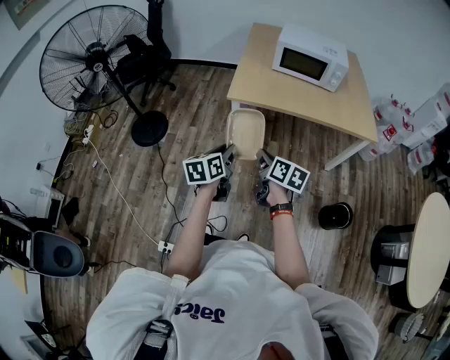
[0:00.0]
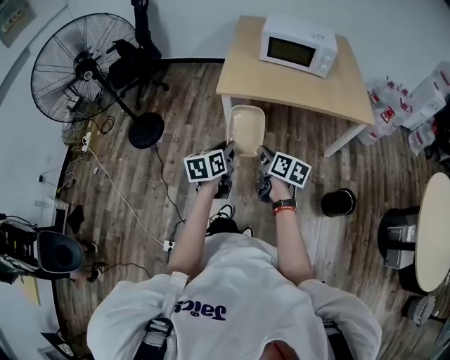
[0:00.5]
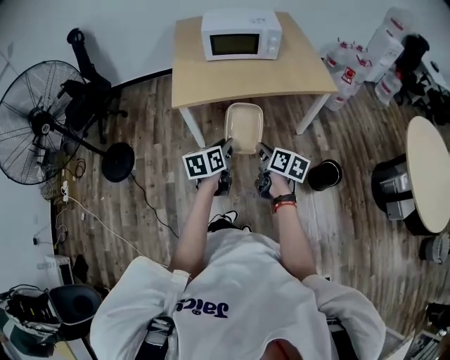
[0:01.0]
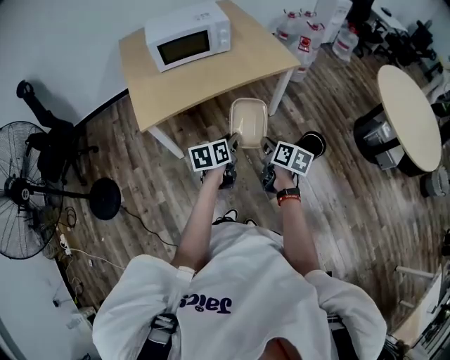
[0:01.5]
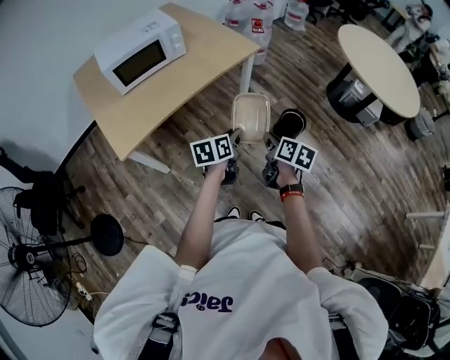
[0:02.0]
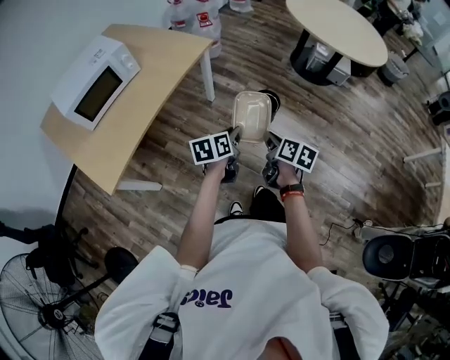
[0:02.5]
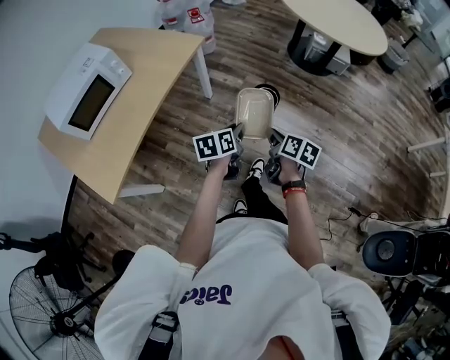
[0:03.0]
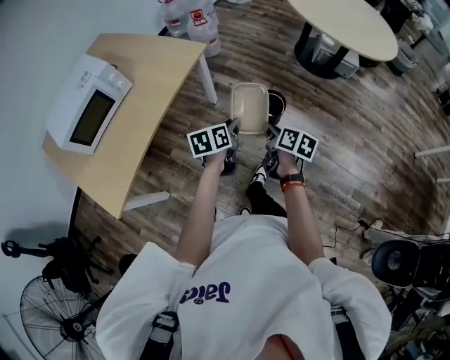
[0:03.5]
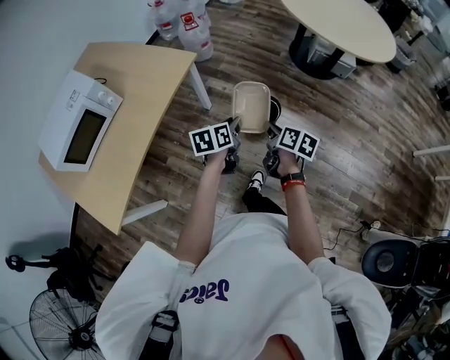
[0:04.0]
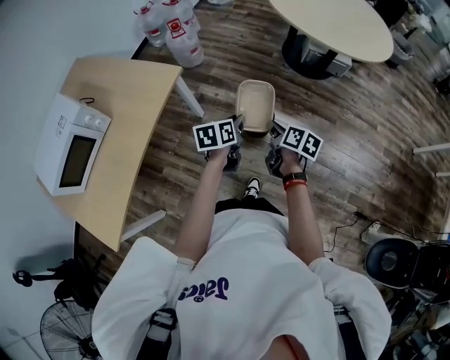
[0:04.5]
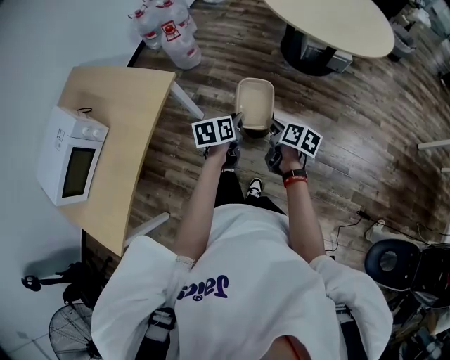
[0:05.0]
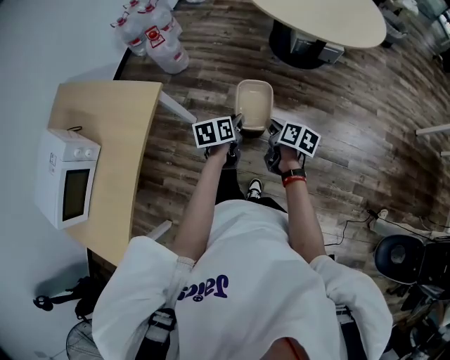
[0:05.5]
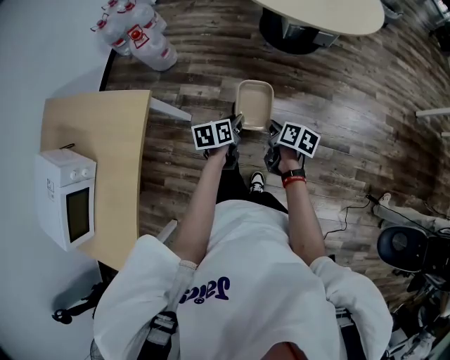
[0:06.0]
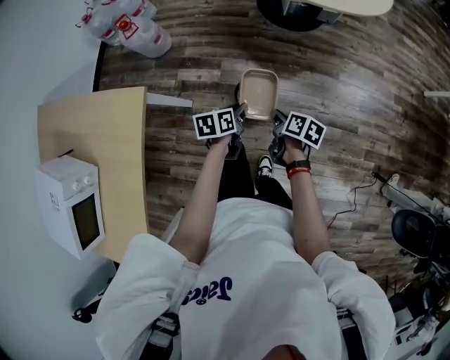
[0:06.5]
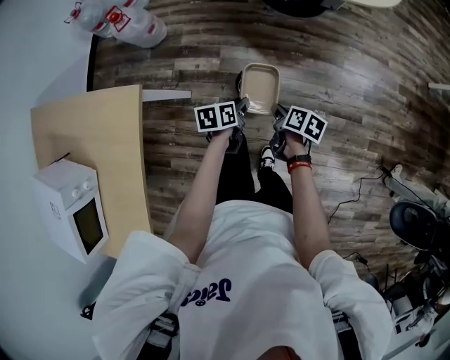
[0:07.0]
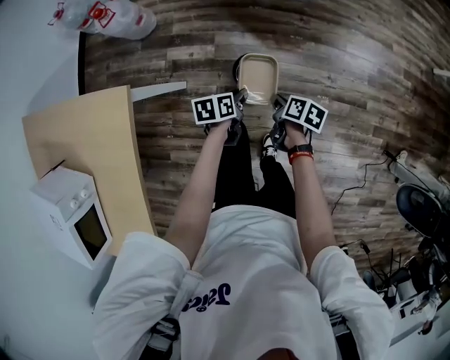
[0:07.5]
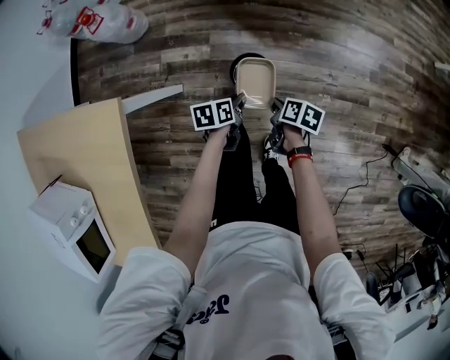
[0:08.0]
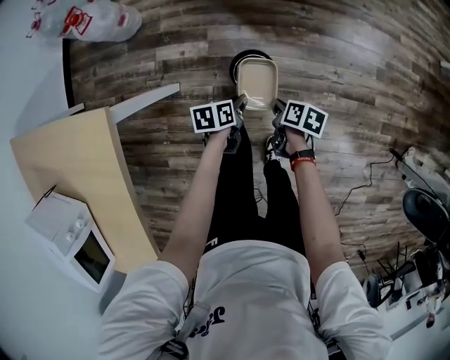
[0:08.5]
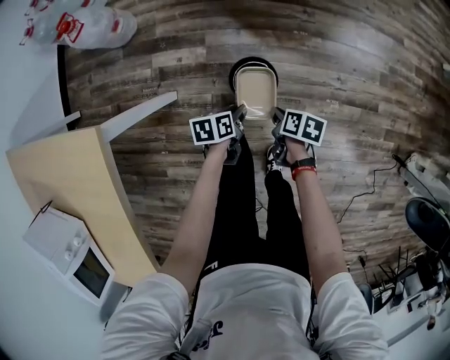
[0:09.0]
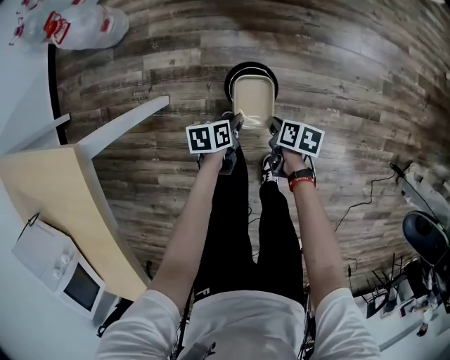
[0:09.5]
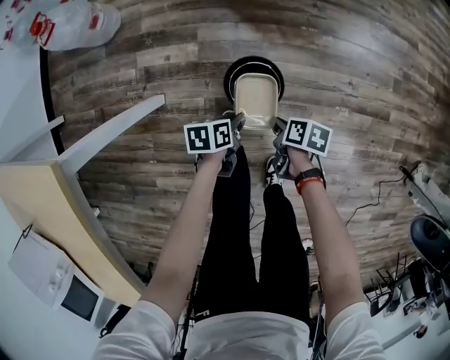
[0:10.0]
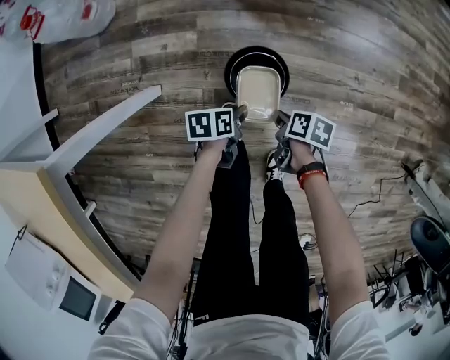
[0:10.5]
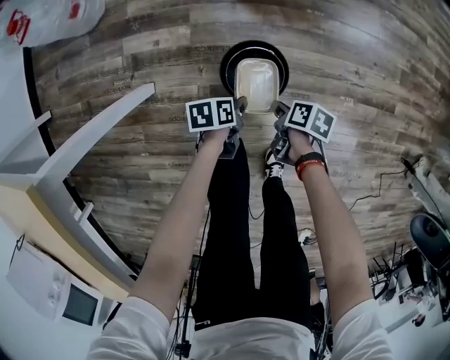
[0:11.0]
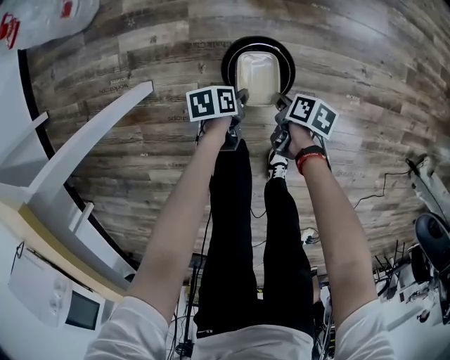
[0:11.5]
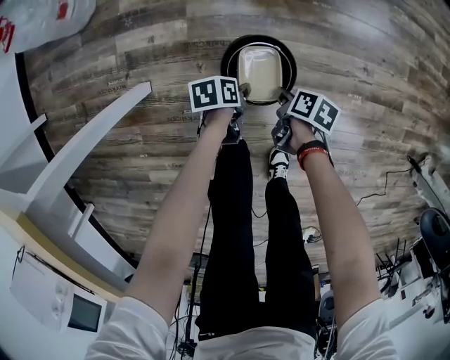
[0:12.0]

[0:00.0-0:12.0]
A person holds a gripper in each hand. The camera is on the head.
0:00.0 to 0:02.0: The right gripper ends up roughly 30 cm from where it was, and swivels approximately 60 degrees, while the left gripper moves some 35 cm, and changes its angle by approximately 60 degrees.
0:02.0 to 0:04.0: The grippers both shift forward and to the right by roughly 30 cm. The left gripper swivels approximately 20 degrees, while the right gripper turns by approximately 20 degrees.
0:04.0 to 0:06.0: The grippers both shift forward, to the right and downward by about 30 cm.
0:06.0 to 0:08.0: Both grippers move downward, some 25 cm.
0:08.0 to 0:10.0: The two grippers go some 30 cm downward.
0:10.0 to 0:12.0: Both grippers travel together downward, some 15 cm.

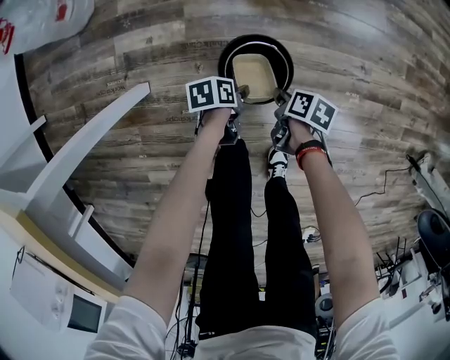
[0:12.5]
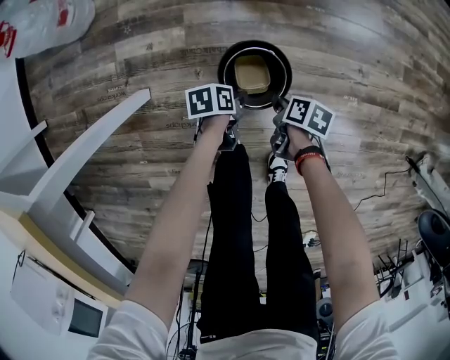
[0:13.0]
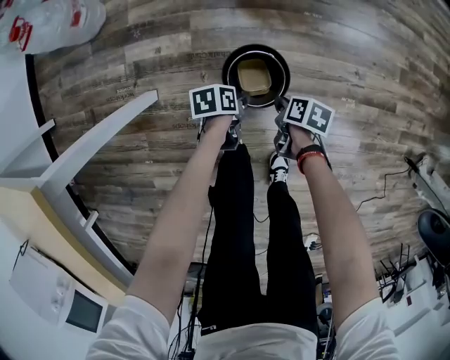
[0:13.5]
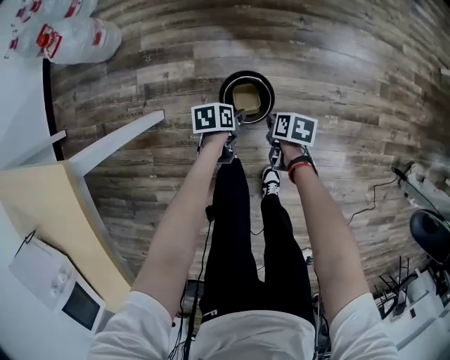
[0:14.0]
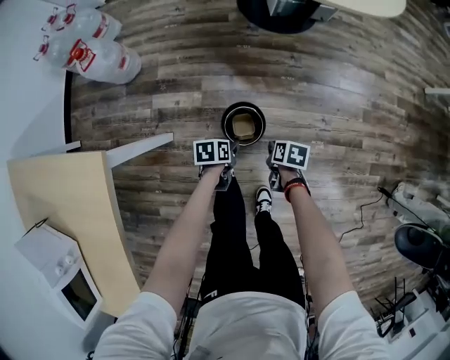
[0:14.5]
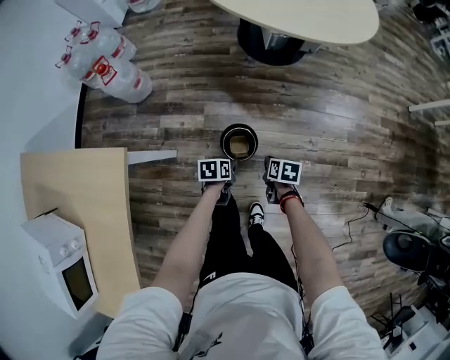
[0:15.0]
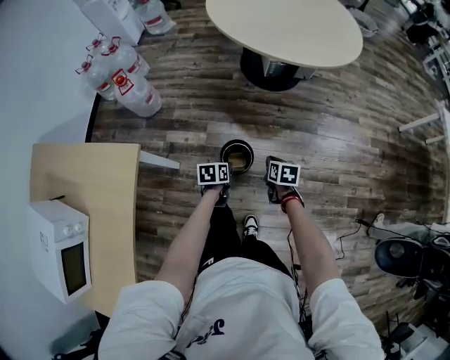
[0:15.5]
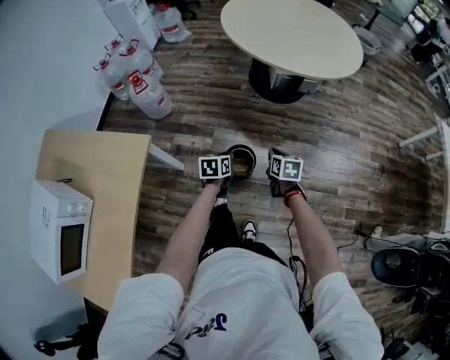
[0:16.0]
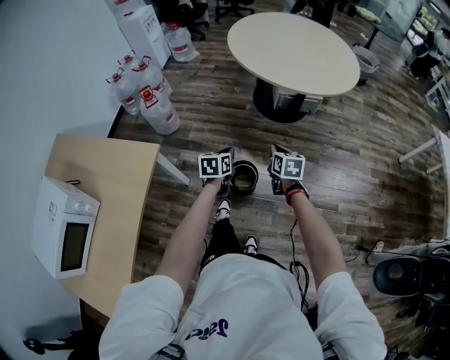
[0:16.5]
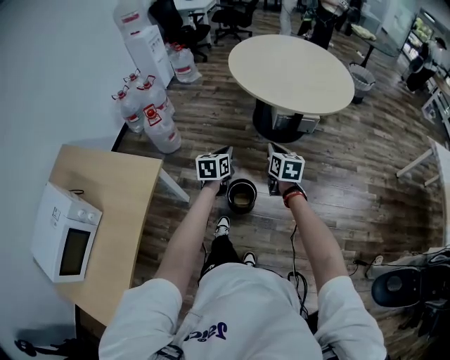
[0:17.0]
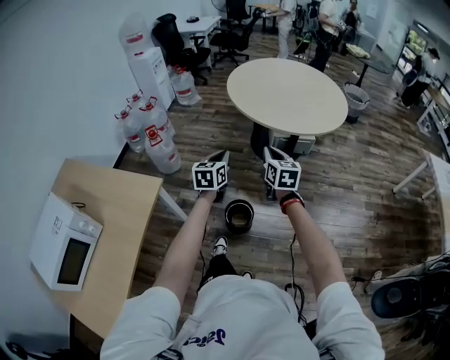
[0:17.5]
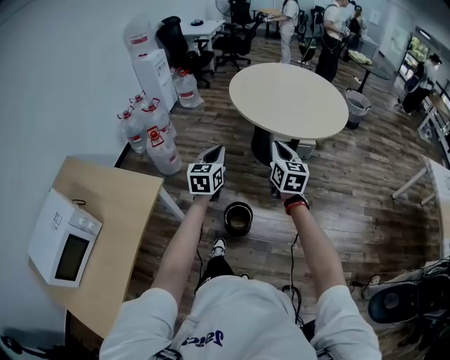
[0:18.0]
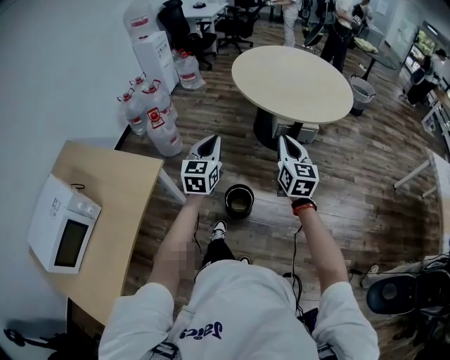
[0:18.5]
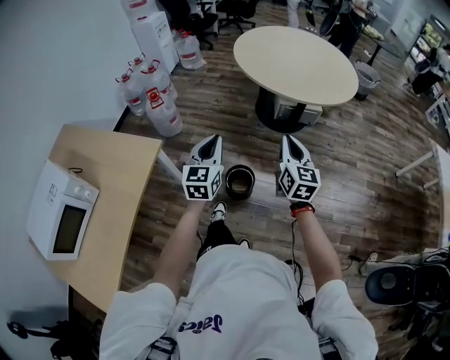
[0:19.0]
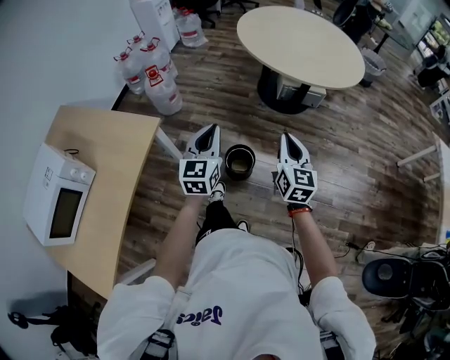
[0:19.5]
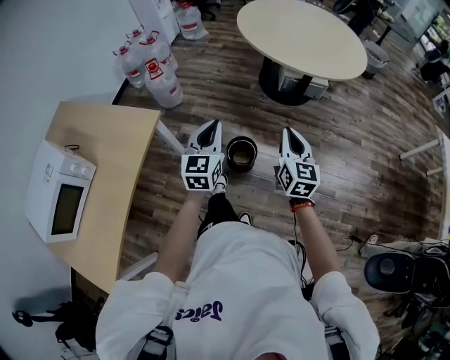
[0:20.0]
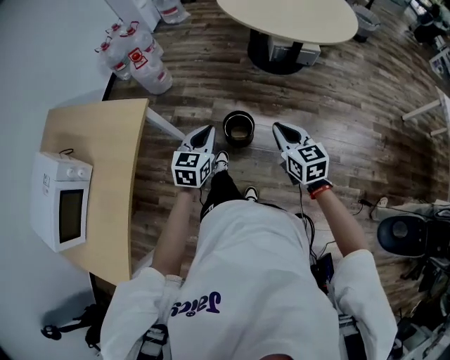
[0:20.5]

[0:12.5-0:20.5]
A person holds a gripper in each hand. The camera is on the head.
0:12.5 to 0:14.5: Both grippers travel together upward, about 35 cm.
0:14.5 to 0:16.5: The two grippers go roughly 50 cm upward. The left gripper turns by some 40 degrees, and closes up. Meanwhile the right gripper tips its fingers upward by roughly 30 degrees.
0:16.5 to 0:18.5: Both grippers move upward, some 25 cm. The left gripper swivels some 40 degrees. Meanwhile the right gripper tips its fingers upward by some 30 degrees.
0:18.5 to 0:20.5: Both grippers travel together downward and backward, approximately 20 cm. The right gripper rotates approximately 30 degrees.

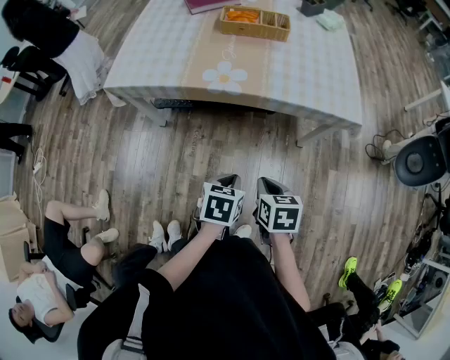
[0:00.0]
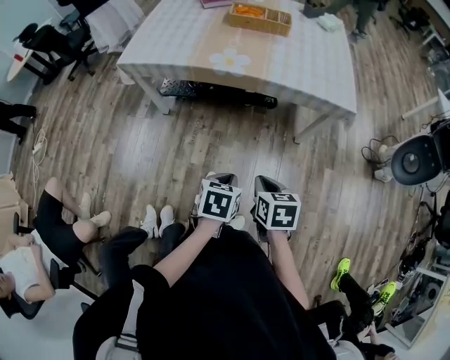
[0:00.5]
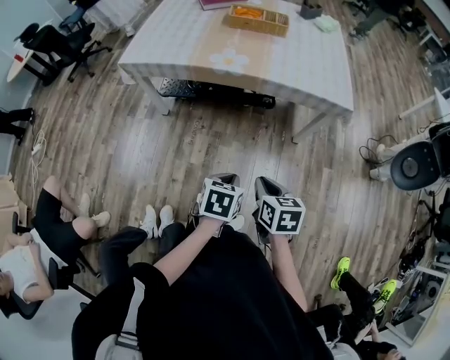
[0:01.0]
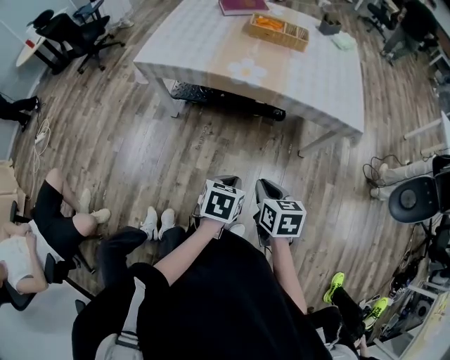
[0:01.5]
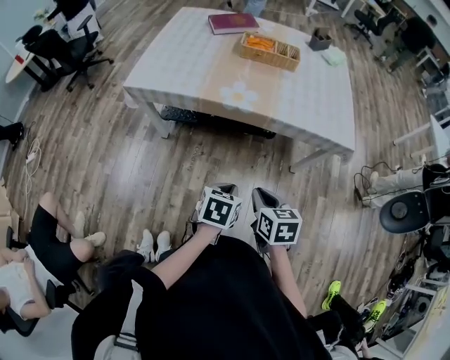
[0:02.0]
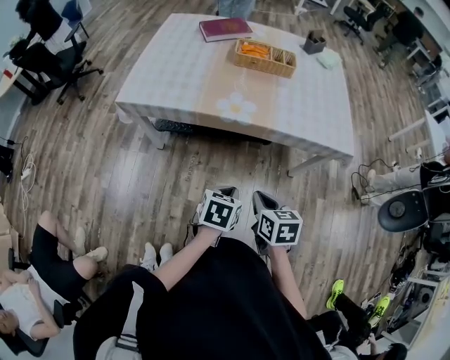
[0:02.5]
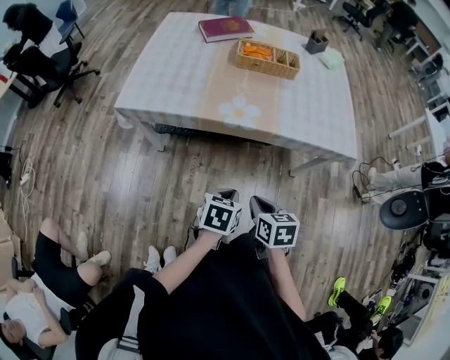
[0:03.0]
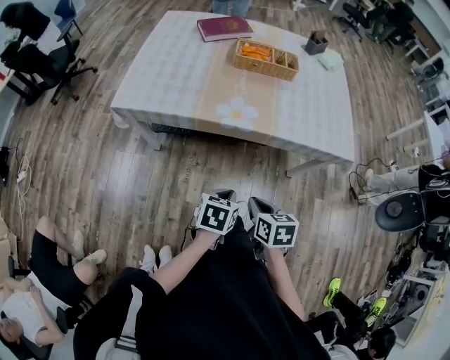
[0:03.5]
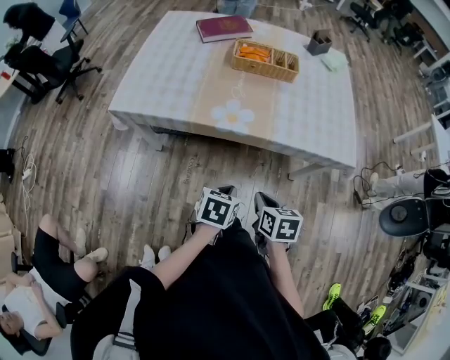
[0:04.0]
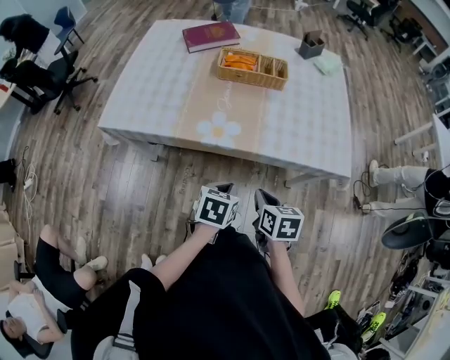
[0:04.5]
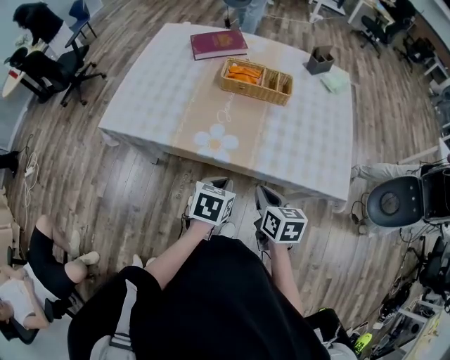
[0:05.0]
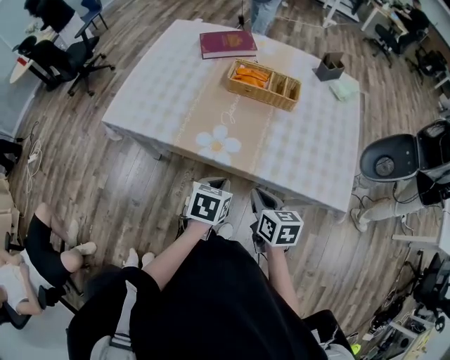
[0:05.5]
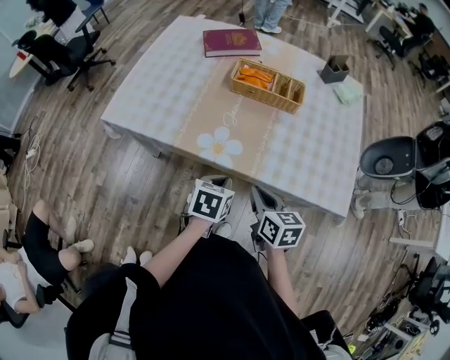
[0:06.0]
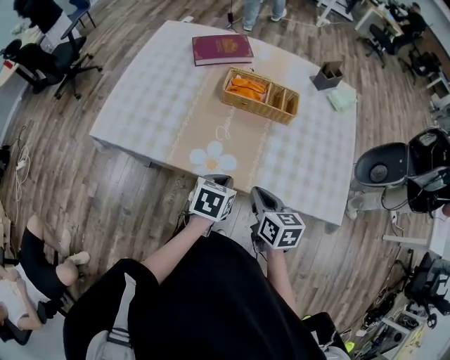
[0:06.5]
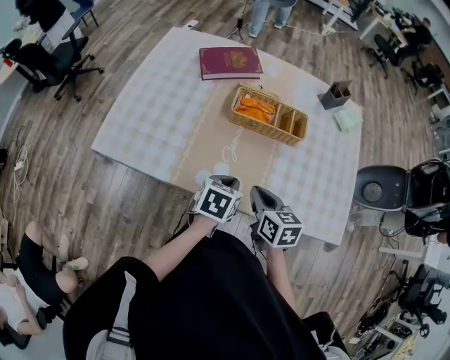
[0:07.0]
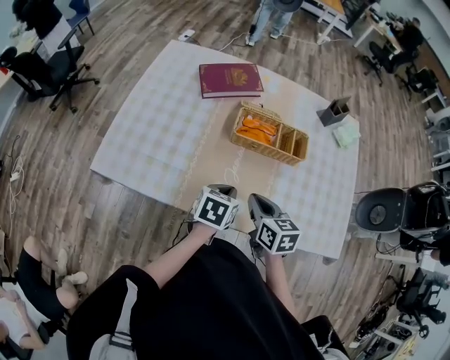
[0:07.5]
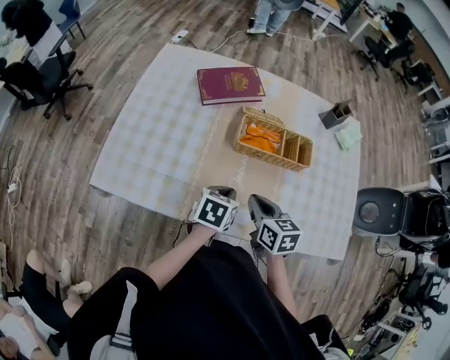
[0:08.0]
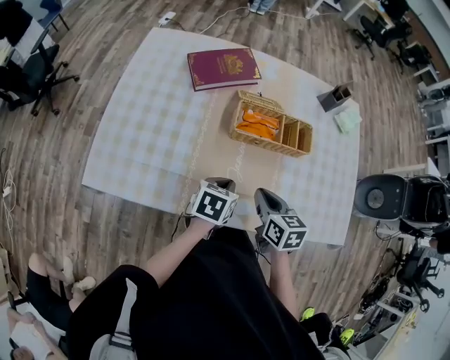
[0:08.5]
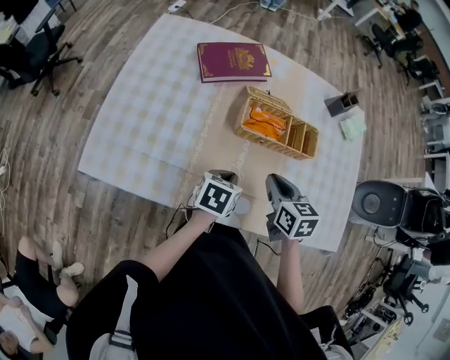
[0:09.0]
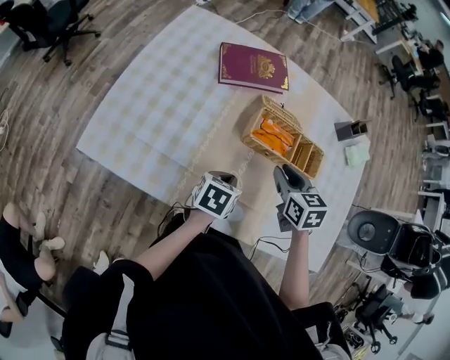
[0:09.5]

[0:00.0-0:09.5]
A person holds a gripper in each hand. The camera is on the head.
0:00.0 to 0:02.0: The left gripper reaches some 15 cm backward, then returns, while the right gripper reaches some 15 cm backward, then returns.
0:02.0 to 0:04.0: Both grippers move forward, roughly 10 cm.
0:04.0 to 0:05.5: Both grippers move forward, approximately 15 cm.
0:05.5 to 0:07.5: The right gripper travels forward and to the left by some 20 cm, while the left gripper shifts approximately 20 cm forward.
0:07.5 to 0:09.5: The right gripper goes approximately 15 cm forward. The left gripper shifts roughly 5 cm forward.
